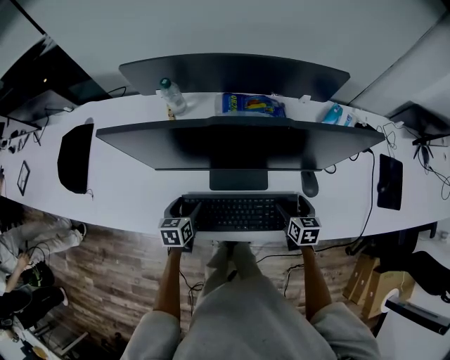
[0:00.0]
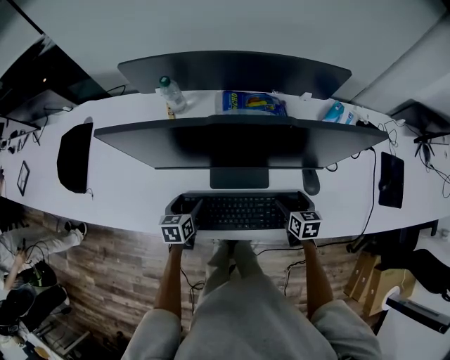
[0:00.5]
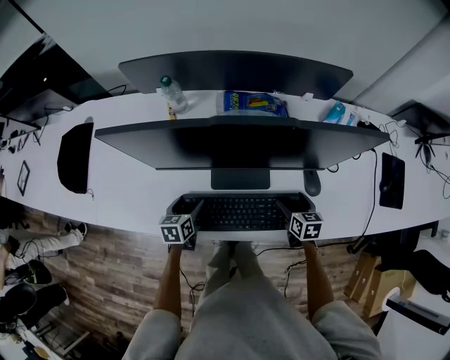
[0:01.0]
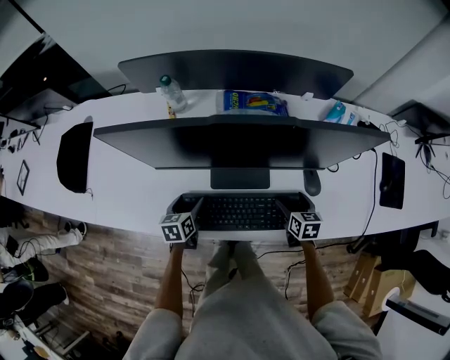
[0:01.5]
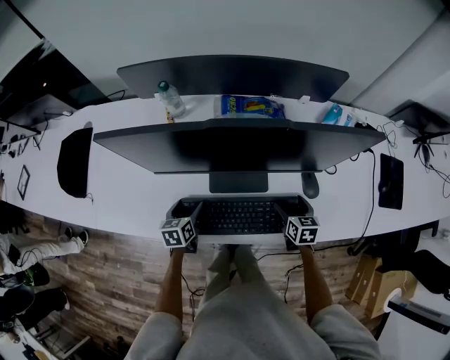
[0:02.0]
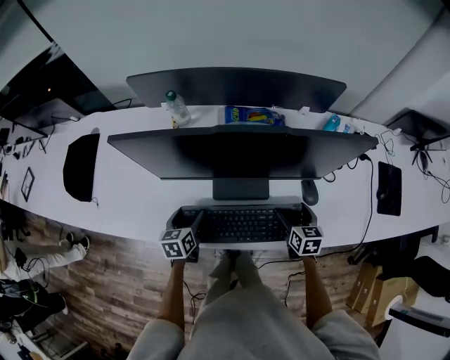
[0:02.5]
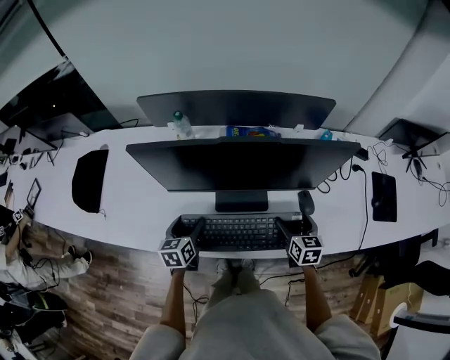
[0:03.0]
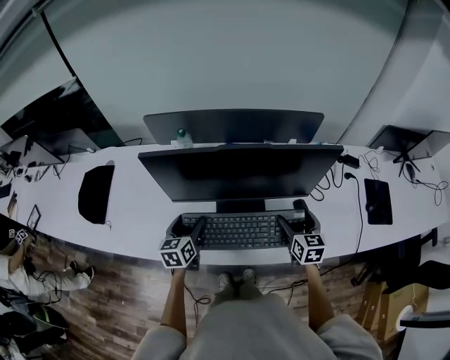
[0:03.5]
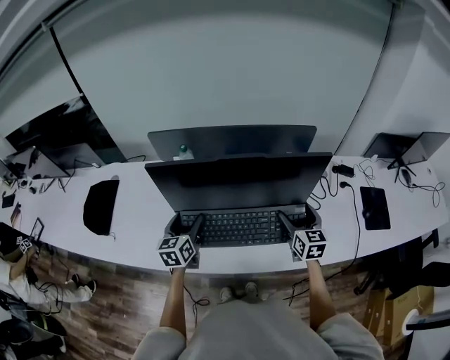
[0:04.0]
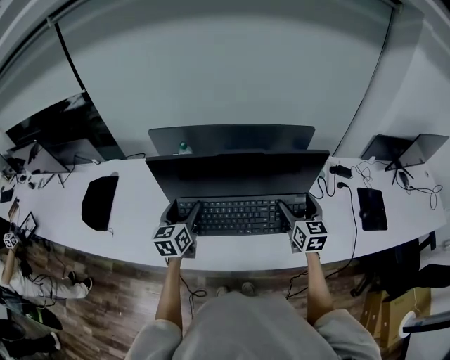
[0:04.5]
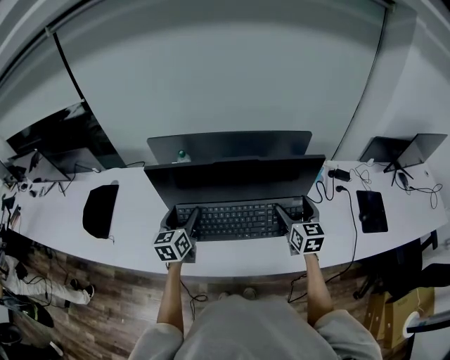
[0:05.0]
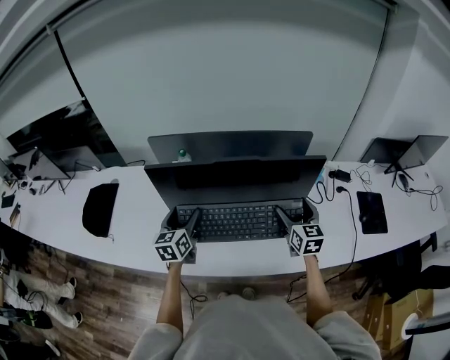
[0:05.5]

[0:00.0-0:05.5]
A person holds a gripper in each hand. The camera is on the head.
0:00.0 to 0:02.0: The grippers make only small movements.
0:02.0 to 0:03.5: Both grippers travel together upward, some 15 cm. The right gripper rotates some 20 degrees.
0:03.5 to 0:05.5: Both grippers travel together upward, about 10 cm.

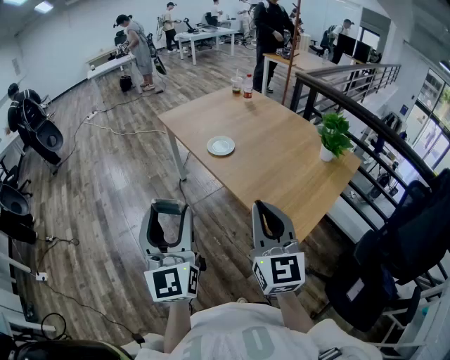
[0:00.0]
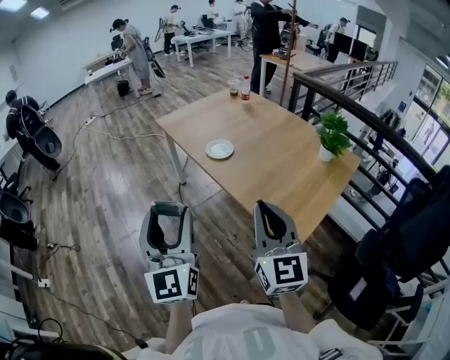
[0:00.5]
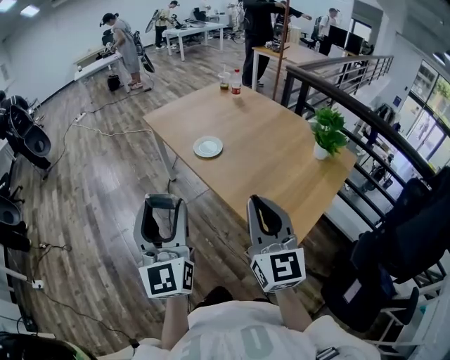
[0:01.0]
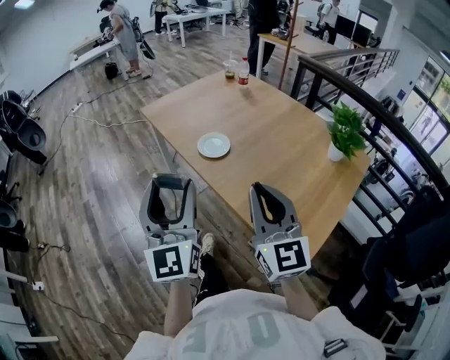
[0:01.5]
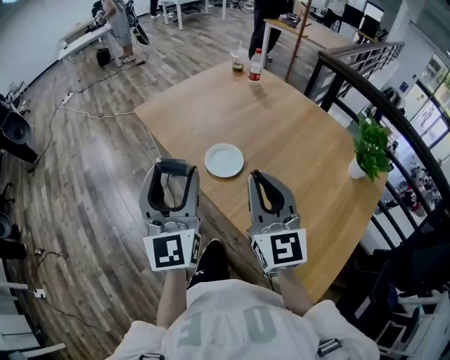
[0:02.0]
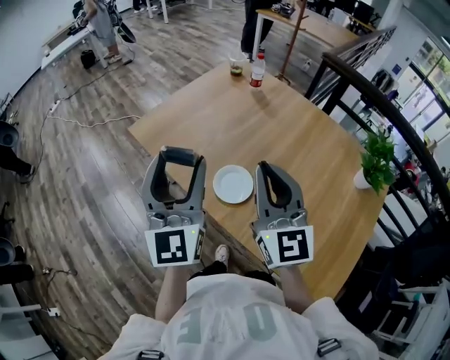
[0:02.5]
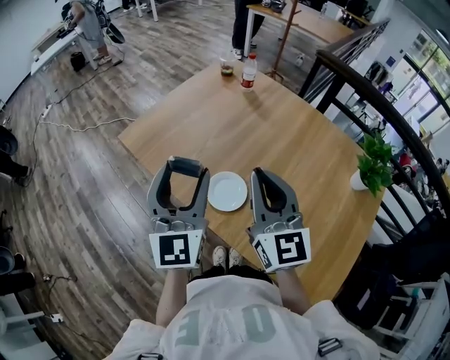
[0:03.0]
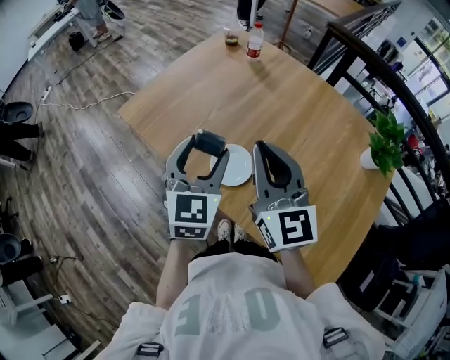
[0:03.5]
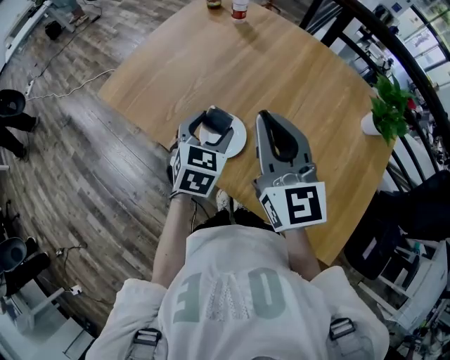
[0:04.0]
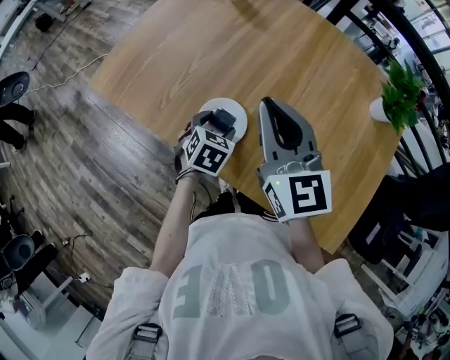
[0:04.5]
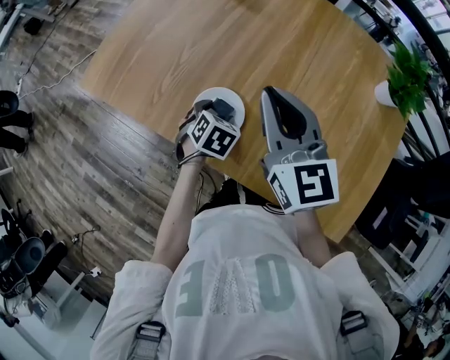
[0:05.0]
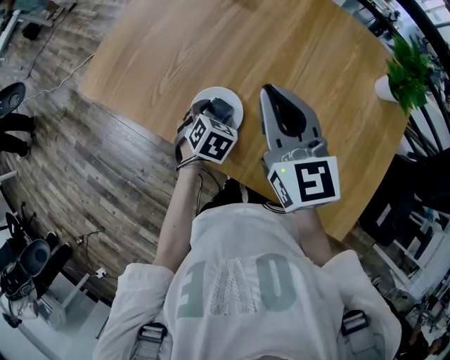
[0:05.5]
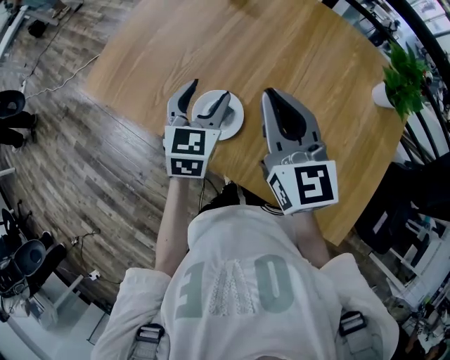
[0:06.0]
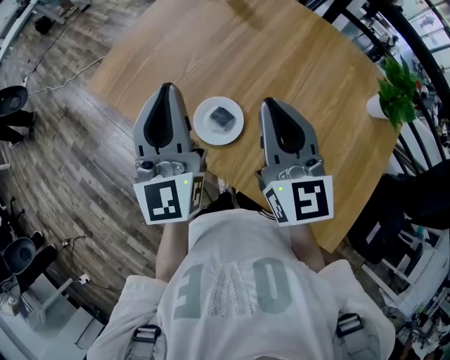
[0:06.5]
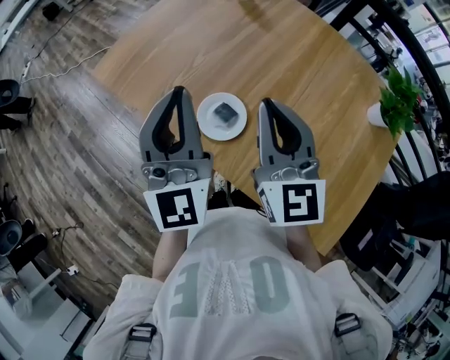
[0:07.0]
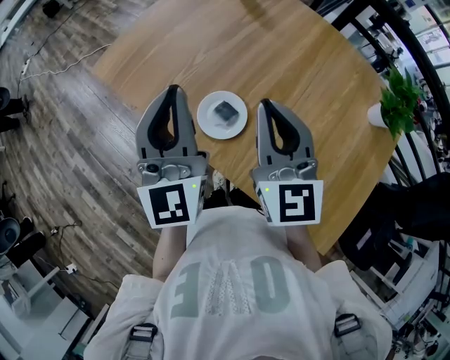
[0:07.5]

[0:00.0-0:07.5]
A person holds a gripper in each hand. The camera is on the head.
0:00.0 to 0:02.0: The two grippers go approximately 35 cm forward.
0:02.0 to 0:04.0: The left gripper shifts about 30 cm forward, downward and to the right, and points its fingers about 50 degrees further downward. Meanwhile the right gripper shifts about 15 cm forward.
0:04.0 to 0:05.5: The left gripper is displaced downward by about 15 cm, and changes its angle by about 30 degrees; the right gripper shifts some 5 cm downward.
0:05.5 to 0:07.5: The right gripper changes place by approximately 5 cm. The left gripper is displaced upward by approximately 30 cm, angles its fingers upward, by some 70 degrees, and closes up.

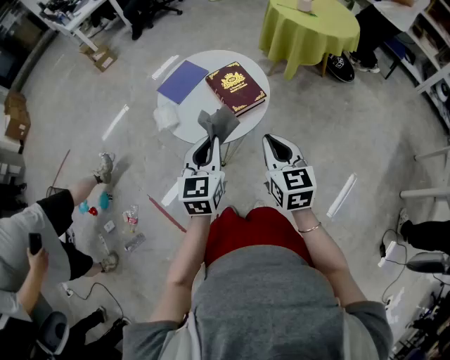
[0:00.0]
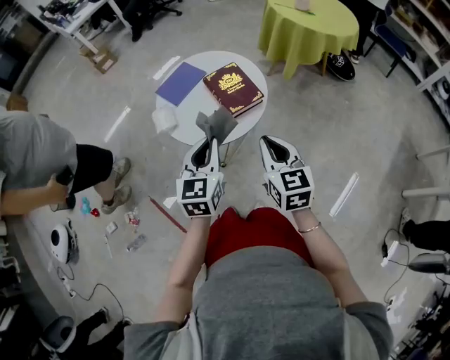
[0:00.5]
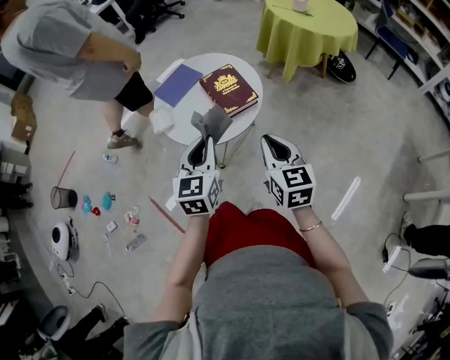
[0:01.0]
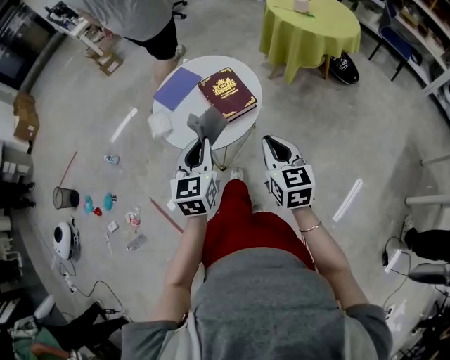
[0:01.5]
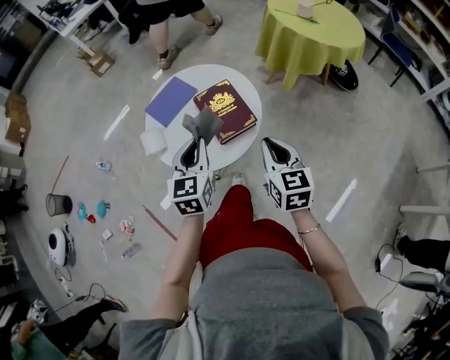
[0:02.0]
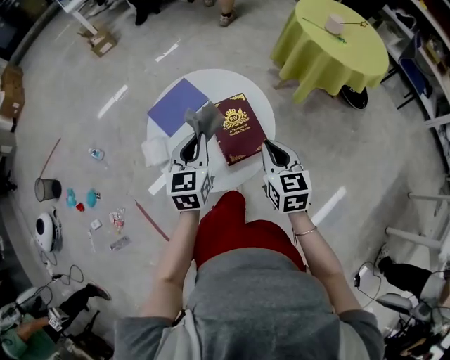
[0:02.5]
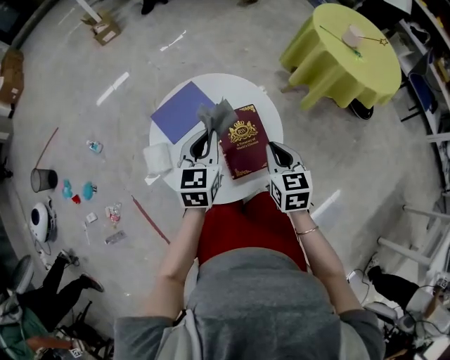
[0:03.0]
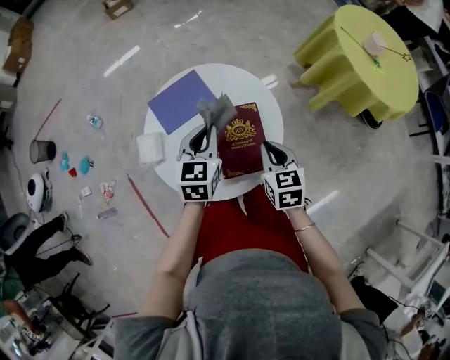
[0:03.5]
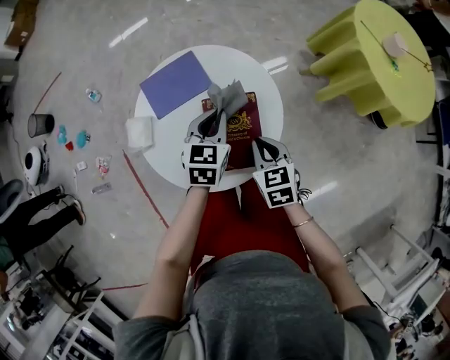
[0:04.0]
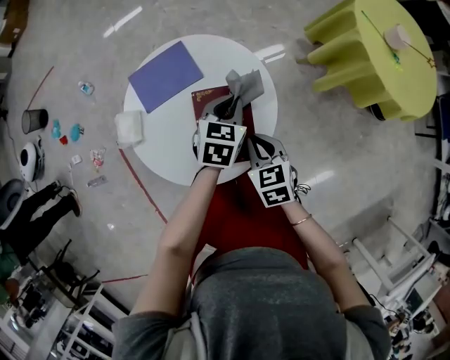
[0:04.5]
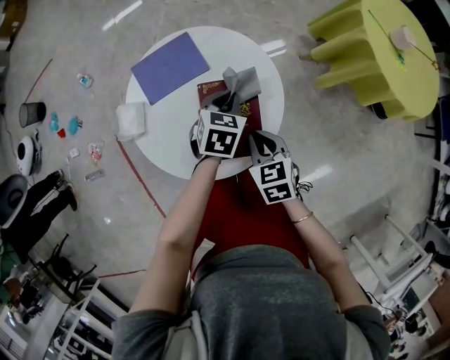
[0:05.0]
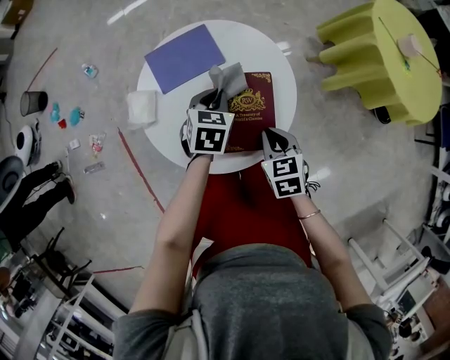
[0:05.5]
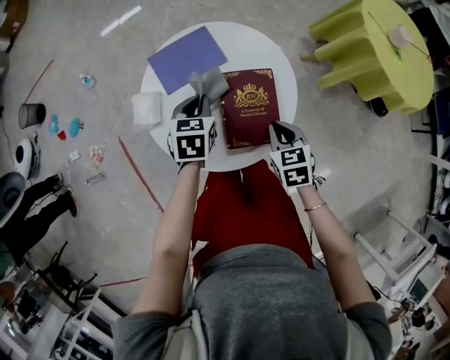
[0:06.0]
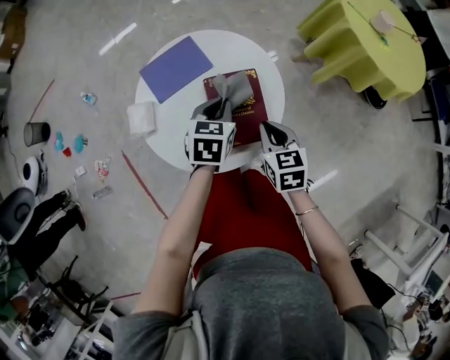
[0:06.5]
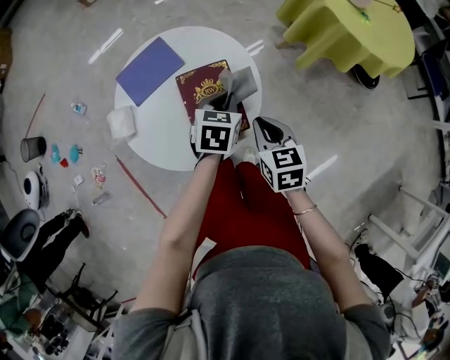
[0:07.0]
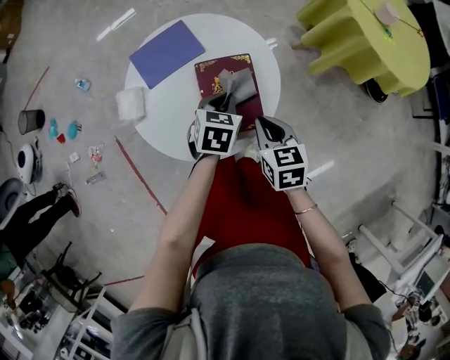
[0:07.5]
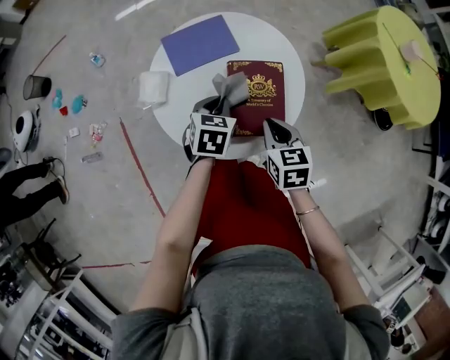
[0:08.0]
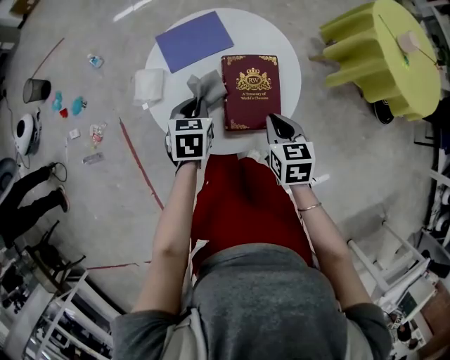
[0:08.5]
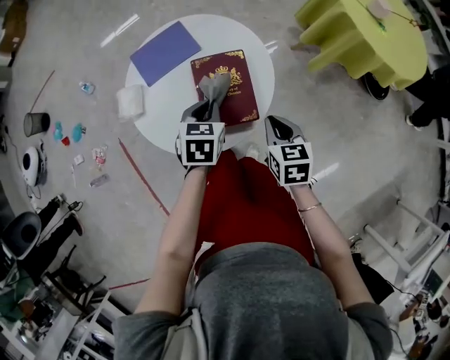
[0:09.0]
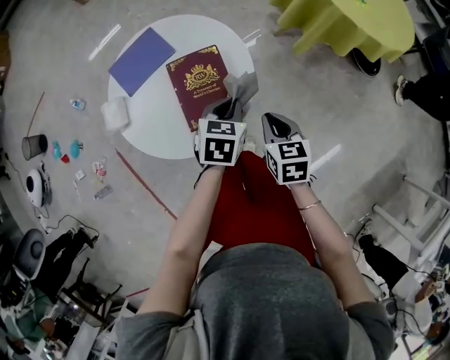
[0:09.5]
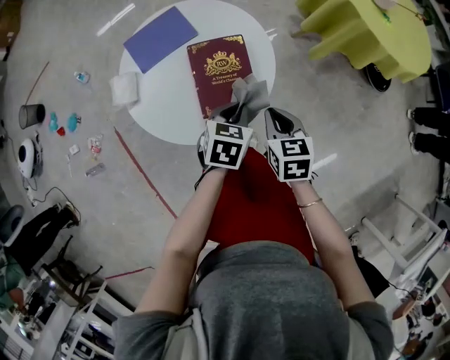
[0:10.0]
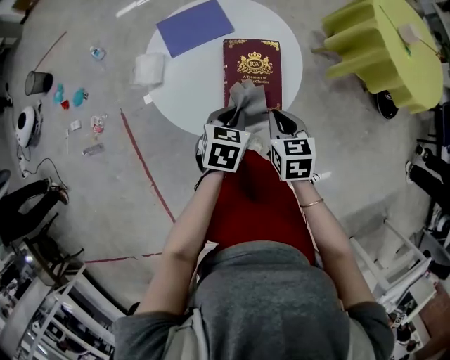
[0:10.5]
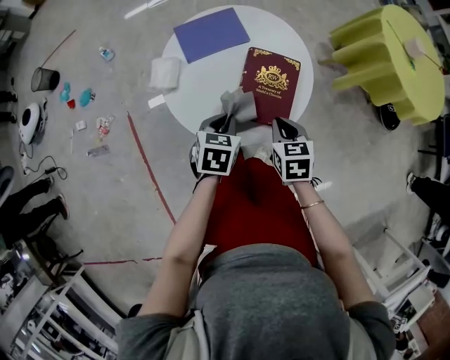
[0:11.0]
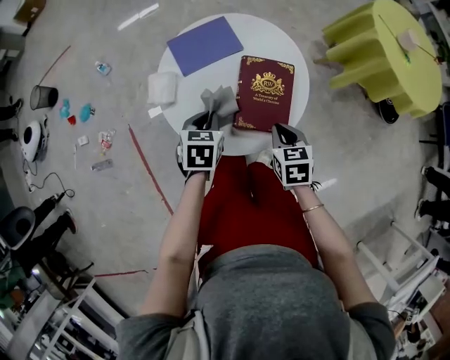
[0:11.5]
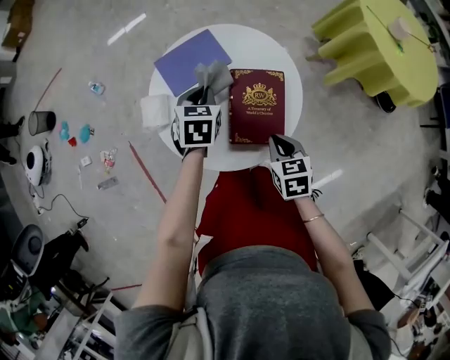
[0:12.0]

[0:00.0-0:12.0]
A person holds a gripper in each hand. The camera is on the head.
0:00.0 to 0:02.0: The right gripper moves forward and to the right, roughly 15 cm; the left gripper travels forward by about 10 cm.
0:02.0 to 0:04.0: Both grippers travel together forward and downward, roughly 25 cm. The right gripper swivels some 40 degrees. Meanwhile the left gripper rotates approximately 20 degrees.
0:04.0 to 0:06.0: The left gripper shifts roughly 10 cm to the left.
0:06.0 to 0:08.0: The left gripper travels to the right and back again, about 20 cm each way. Meanwhile the right gripper goes to the right and returns, some 5 cm each way.
0:08.0 to 0:10.0: The left gripper goes roughly 15 cm to the right and backward. Meanwhile the right gripper goes approximately 10 cm to the right.
0:10.0 to 0:12.0: The left gripper goes approximately 25 cm to the left and forward, while the right gripper shifts some 10 cm to the left.

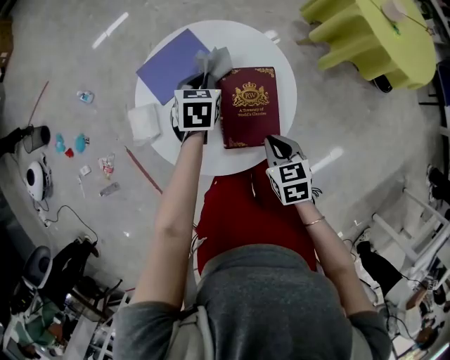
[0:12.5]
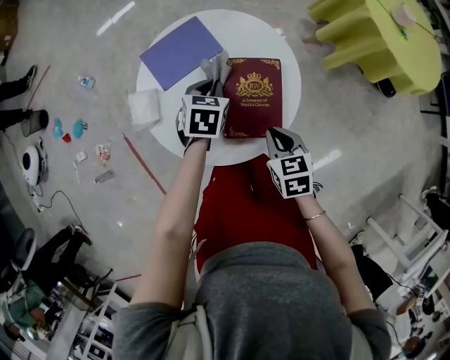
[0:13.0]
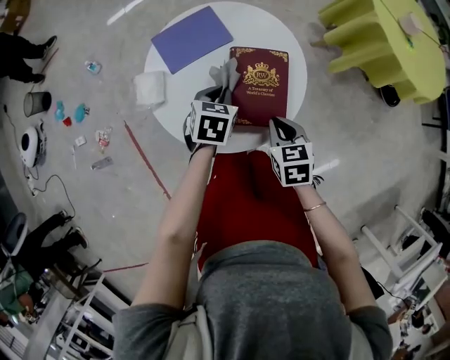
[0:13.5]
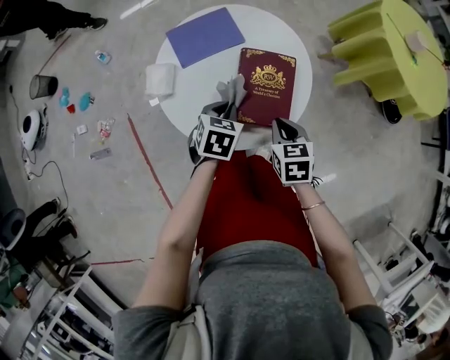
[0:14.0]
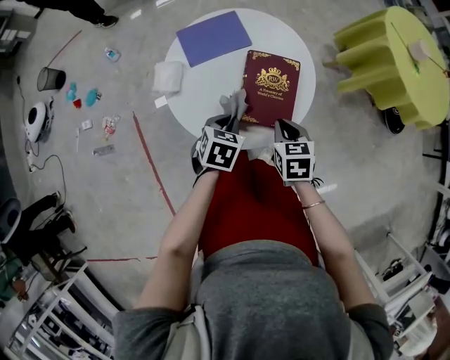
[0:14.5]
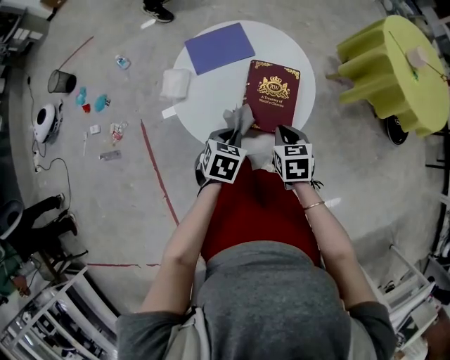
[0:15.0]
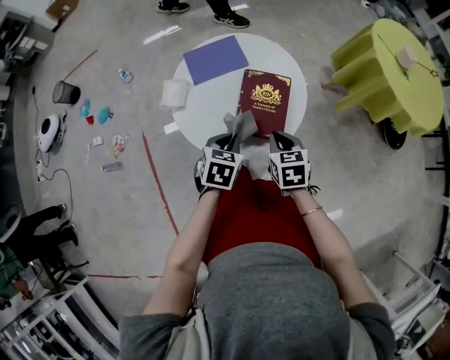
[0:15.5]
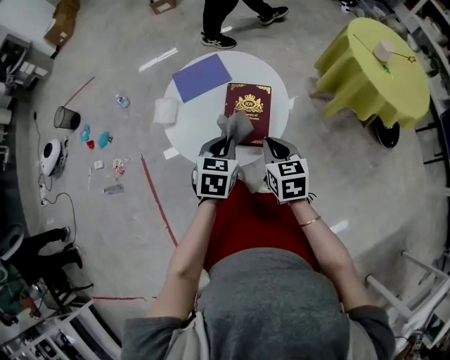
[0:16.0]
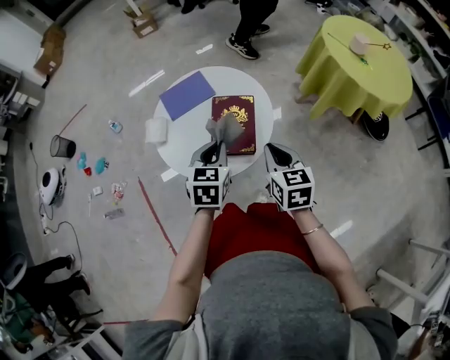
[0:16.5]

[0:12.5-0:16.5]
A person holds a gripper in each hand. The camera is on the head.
0:12.5 to 0:14.5: The left gripper travels backward by roughly 20 cm.
0:14.5 to 0:16.5: Both grippers travel together upward and to the right, roughly 15 cm. The right gripper changes its angle by about 20 degrees; the left gripper rotates approximately 20 degrees.
